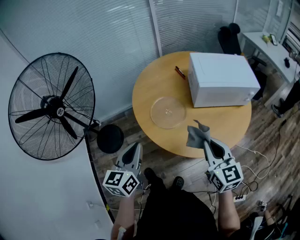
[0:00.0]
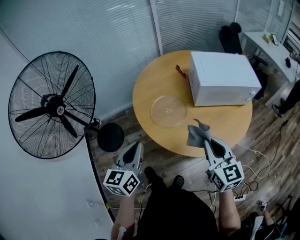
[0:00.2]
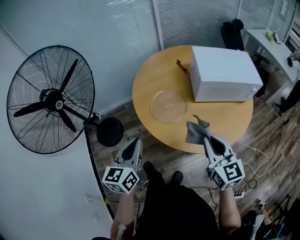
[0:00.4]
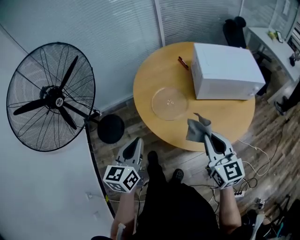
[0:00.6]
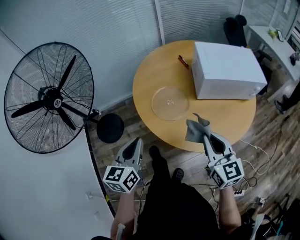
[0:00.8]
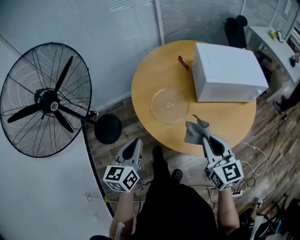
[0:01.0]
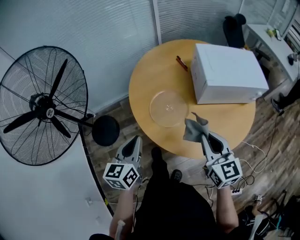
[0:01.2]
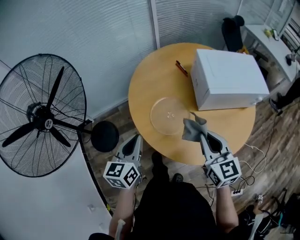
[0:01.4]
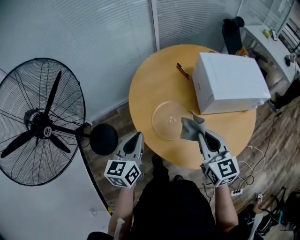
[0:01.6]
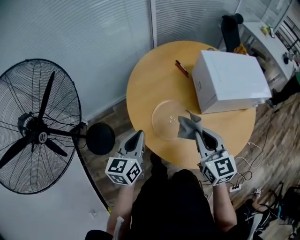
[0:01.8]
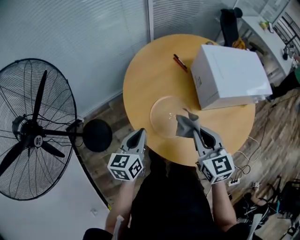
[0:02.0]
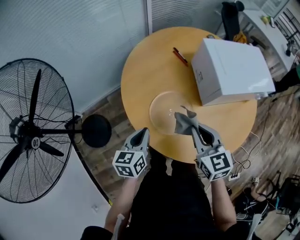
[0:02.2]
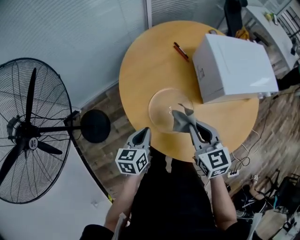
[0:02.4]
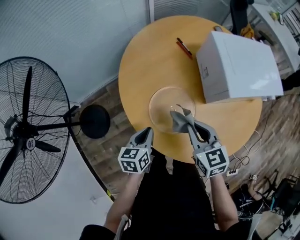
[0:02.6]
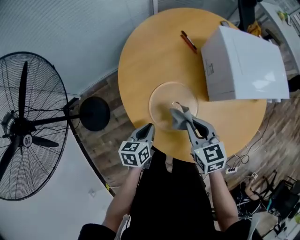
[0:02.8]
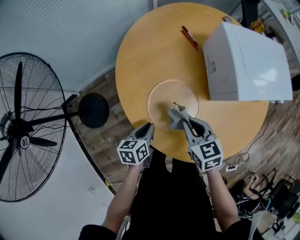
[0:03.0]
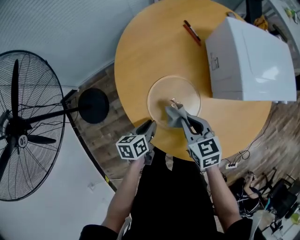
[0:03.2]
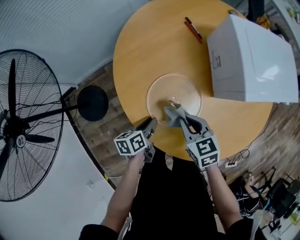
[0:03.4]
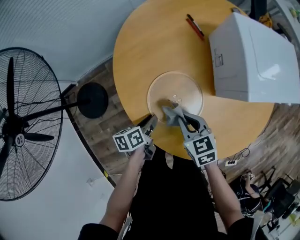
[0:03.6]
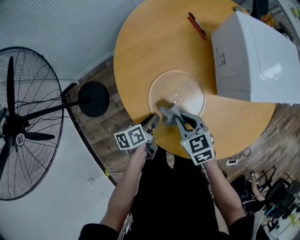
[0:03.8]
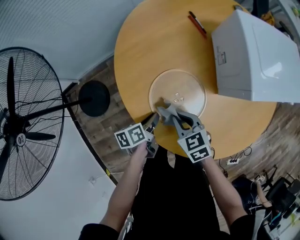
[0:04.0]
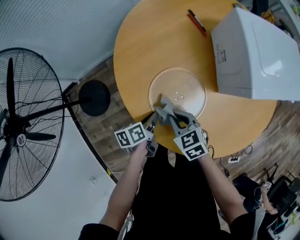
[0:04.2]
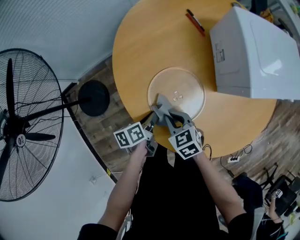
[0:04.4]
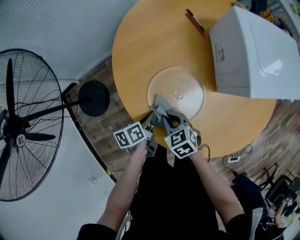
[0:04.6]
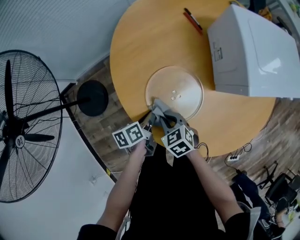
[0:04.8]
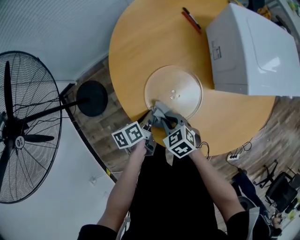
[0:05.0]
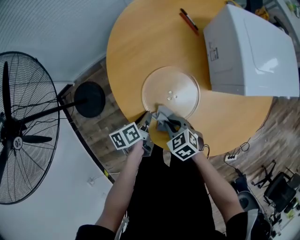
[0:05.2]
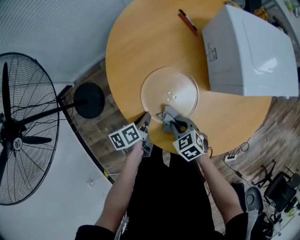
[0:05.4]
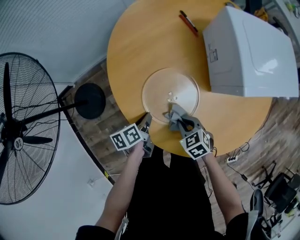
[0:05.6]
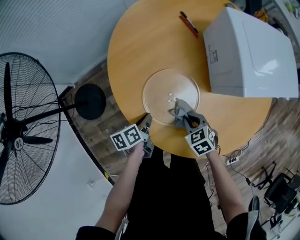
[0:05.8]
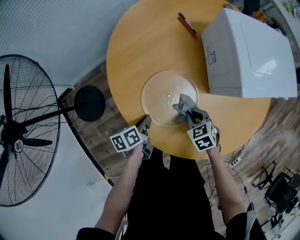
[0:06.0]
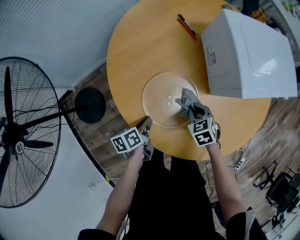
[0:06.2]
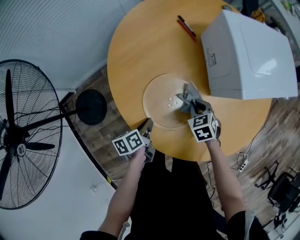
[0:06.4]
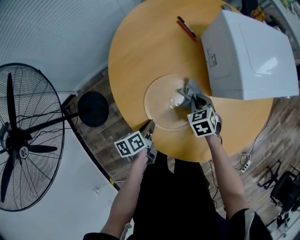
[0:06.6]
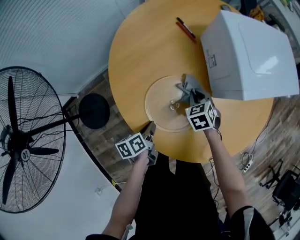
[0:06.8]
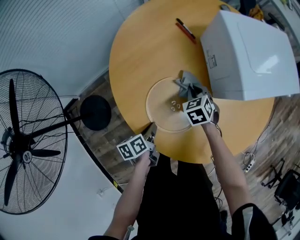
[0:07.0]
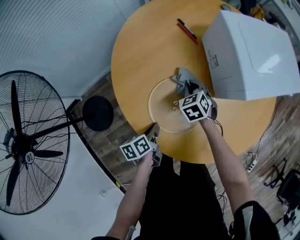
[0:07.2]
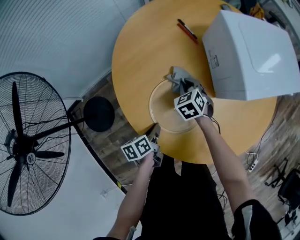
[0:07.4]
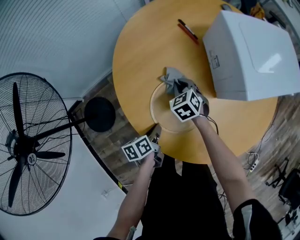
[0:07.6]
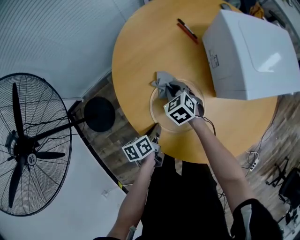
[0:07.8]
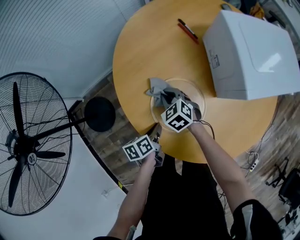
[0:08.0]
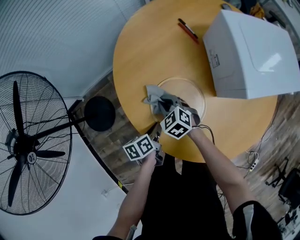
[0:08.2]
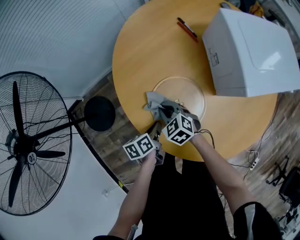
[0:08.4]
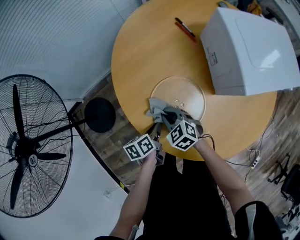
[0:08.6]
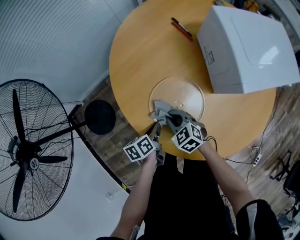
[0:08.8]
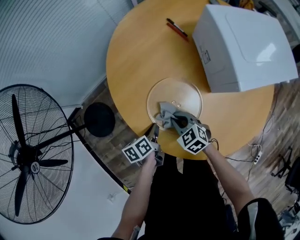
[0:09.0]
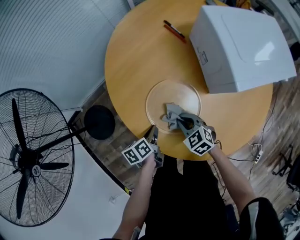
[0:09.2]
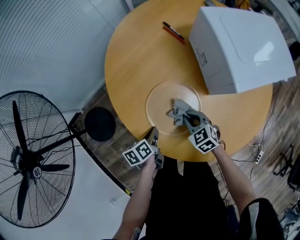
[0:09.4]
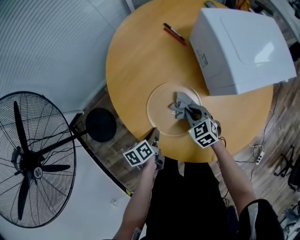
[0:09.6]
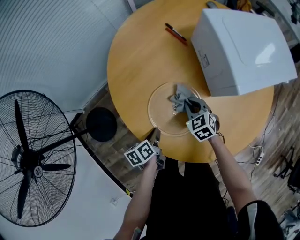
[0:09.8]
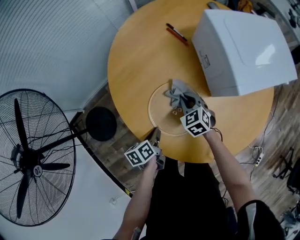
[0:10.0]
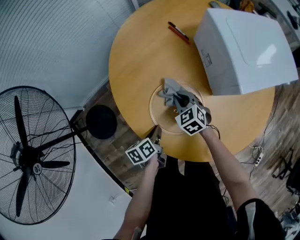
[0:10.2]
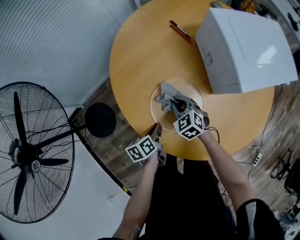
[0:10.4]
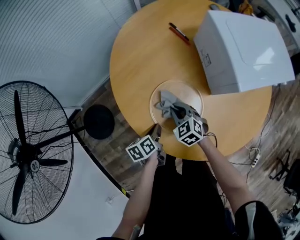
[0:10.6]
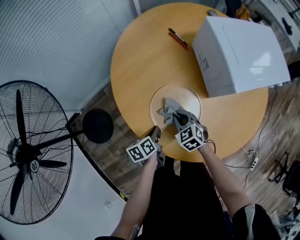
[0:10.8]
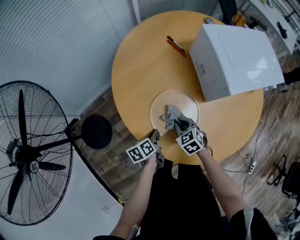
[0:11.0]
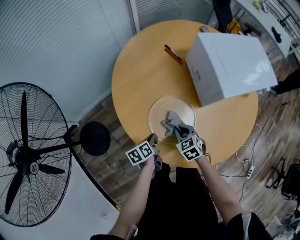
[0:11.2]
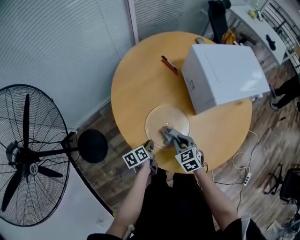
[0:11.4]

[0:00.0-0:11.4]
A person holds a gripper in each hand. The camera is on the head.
0.0 to 1.4 s: Both grippers move forward, approximately 10 cm.
1.4 to 2.8 s: The left gripper is displaced downward by approximately 20 cm, and turns by about 30 degrees; the right gripper heads downward, forward and to the left, covering approximately 20 cm, and changes its angle by some 20 degrees.
2.8 to 4.2 s: The left gripper shifts some 10 cm downward, and swivels some 30 degrees, while the right gripper heads downward and to the left, covering roughly 15 cm.
4.2 to 5.6 s: The right gripper moves to the right, approximately 5 cm.
5.6 to 7.2 s: The right gripper shifts about 20 cm forward, and changes its angle by approximately 20 degrees.
7.2 to 8.6 s: The right gripper goes about 20 cm backward and to the left, and turns by approximately 30 degrees.
8.6 to 10.0 s: The right gripper shifts some 15 cm to the right and forward, and changes its angle by roughly 20 degrees.
10.0 to 11.4 s: The right gripper heads backward, covering some 10 cm.

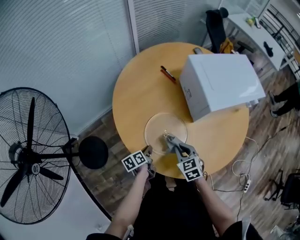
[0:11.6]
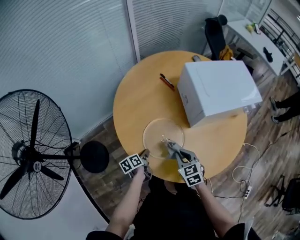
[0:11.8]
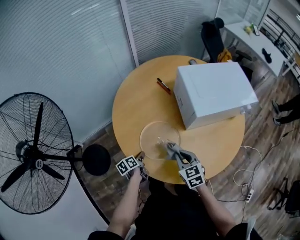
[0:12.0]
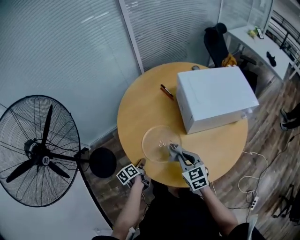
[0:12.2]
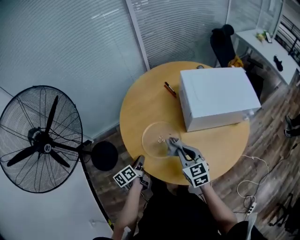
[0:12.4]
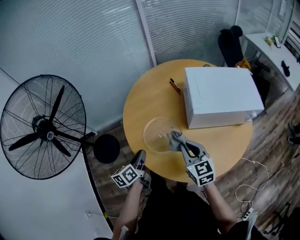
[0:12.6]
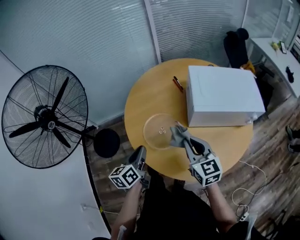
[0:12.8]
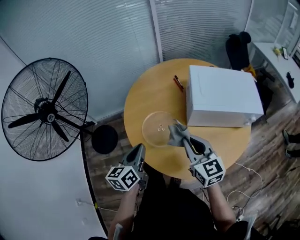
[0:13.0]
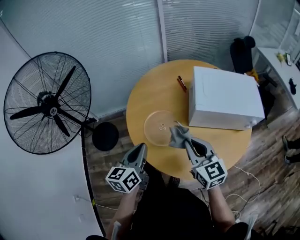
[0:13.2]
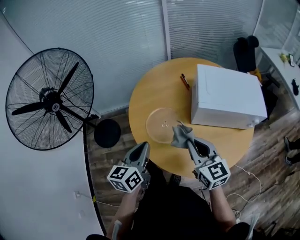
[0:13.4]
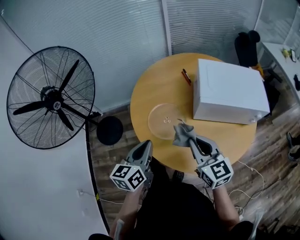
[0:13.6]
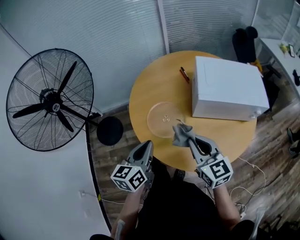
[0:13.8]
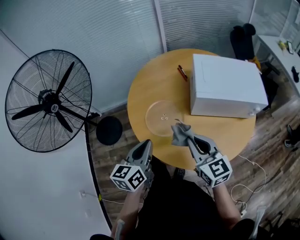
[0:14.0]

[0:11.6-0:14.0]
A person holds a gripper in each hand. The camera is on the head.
11.6 to 12.8 s: The right gripper heads upward and to the right, covering about 25 cm, and rotates approximately 30 degrees, while the left gripper is displaced upward by some 25 cm, and changes its angle by roughly 40 degrees.
12.8 to 14.0 s: The right gripper heads backward, covering approximately 5 cm; the left gripper moves backward and upward, roughly 10 cm.

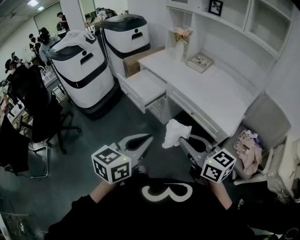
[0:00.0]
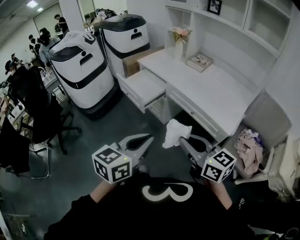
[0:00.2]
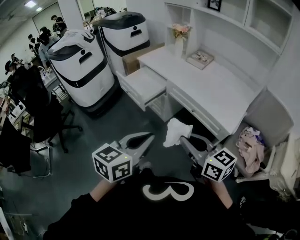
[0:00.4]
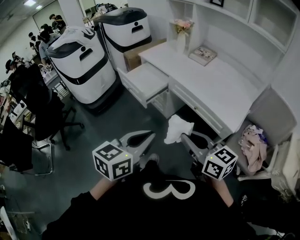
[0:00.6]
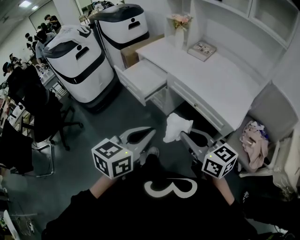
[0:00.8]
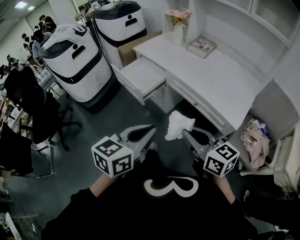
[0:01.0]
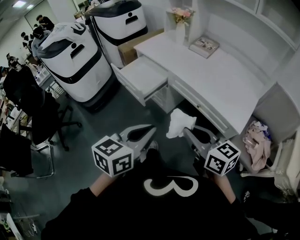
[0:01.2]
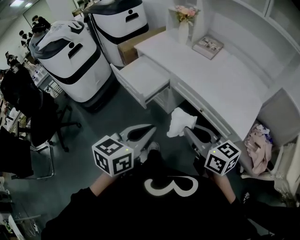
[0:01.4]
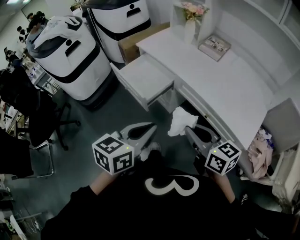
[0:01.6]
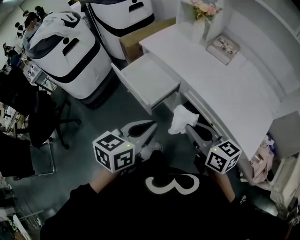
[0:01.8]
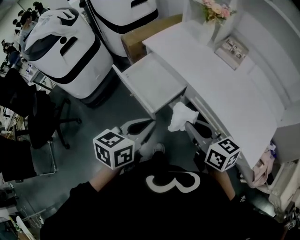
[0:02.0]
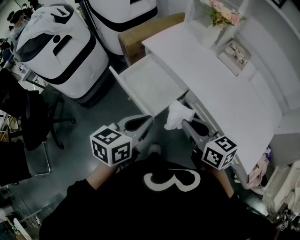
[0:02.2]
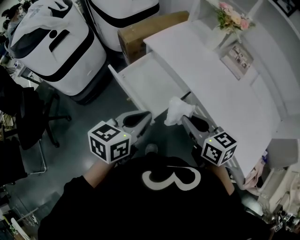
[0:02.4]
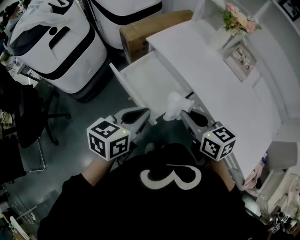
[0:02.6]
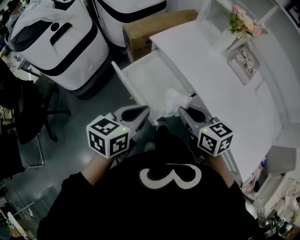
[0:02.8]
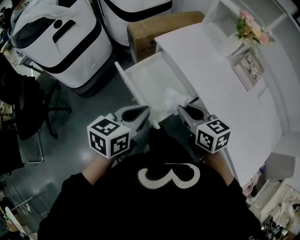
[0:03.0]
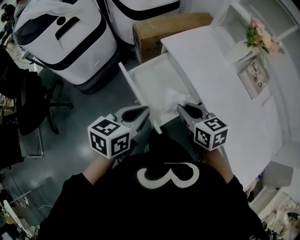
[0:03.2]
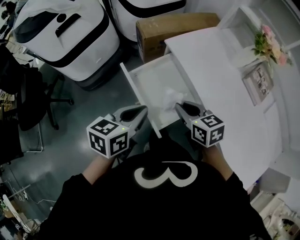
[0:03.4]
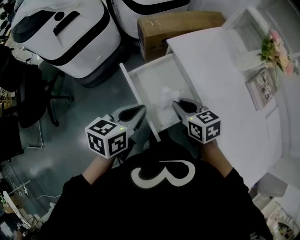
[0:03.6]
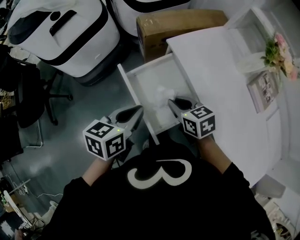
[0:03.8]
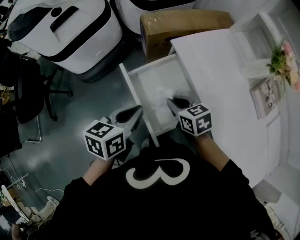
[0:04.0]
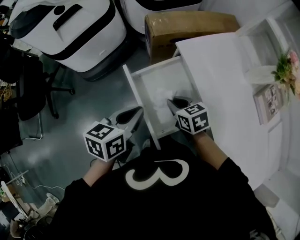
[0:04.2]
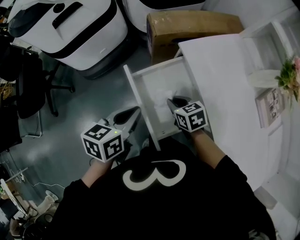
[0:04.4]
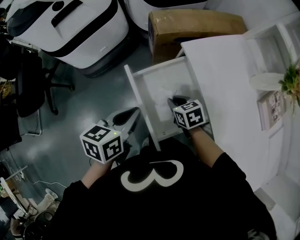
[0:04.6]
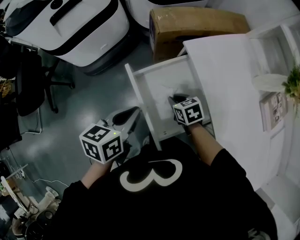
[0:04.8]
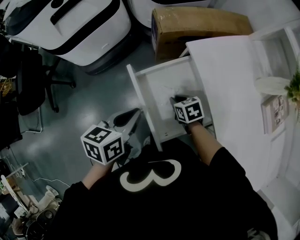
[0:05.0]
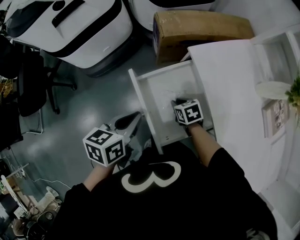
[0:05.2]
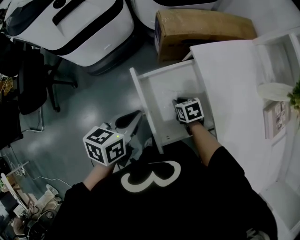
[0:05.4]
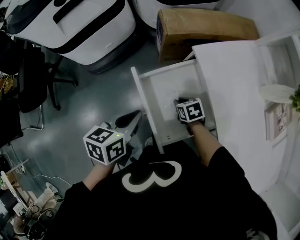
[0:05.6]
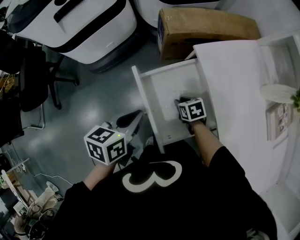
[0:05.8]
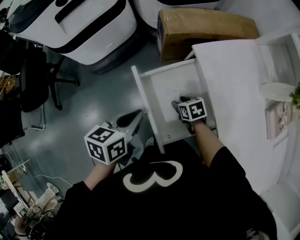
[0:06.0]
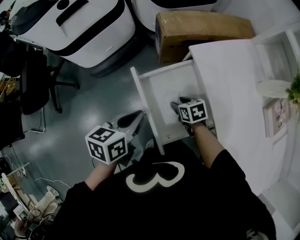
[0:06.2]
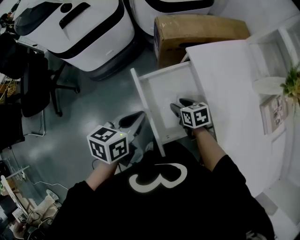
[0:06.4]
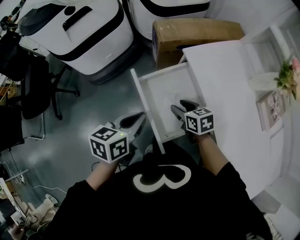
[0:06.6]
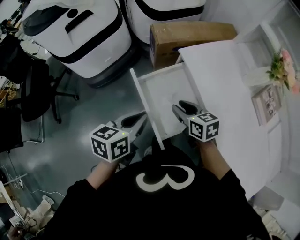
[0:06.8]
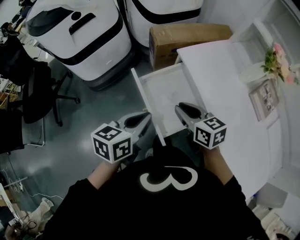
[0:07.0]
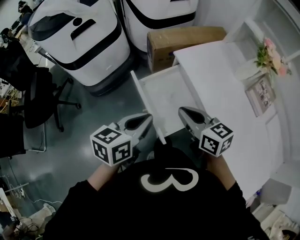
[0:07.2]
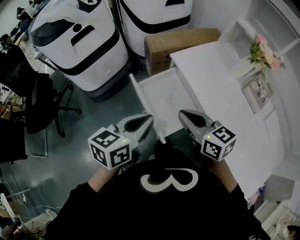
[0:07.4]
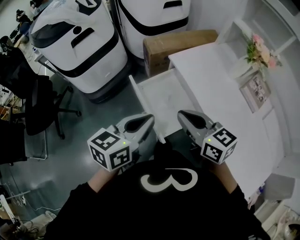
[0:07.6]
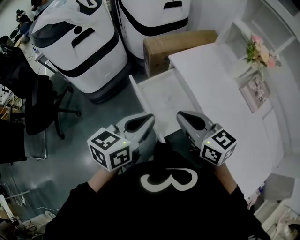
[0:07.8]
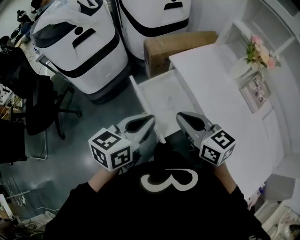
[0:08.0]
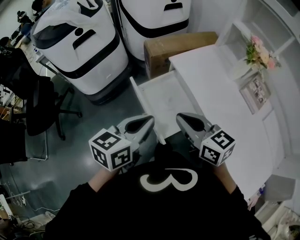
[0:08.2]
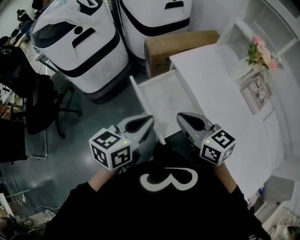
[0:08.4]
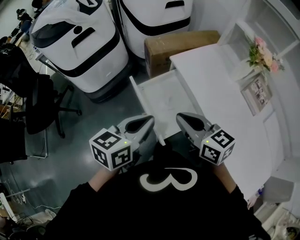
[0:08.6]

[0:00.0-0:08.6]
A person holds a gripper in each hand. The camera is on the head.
0.0 to 1.4 s: Both grippers travel together forward and downward, some 15 cm.
1.4 to 2.8 s: The two grippers go roughly 40 cm forward and to the left.
2.8 to 4.4 s: The right gripper travels downward and forward by roughly 25 cm, and changes its angle by about 30 degrees. Meanwhile the left gripper is displaced forward, downward and to the left by about 15 cm, and changes its angle by some 30 degrees.
4.4 to 5.8 s: The right gripper shifts some 10 cm downward.
5.8 to 7.2 s: The left gripper goes about 15 cm upward and backward. Meanwhile the right gripper heads upward, covering some 30 cm, points its fingers some 40 degrees further upward, and closes its fingers.
7.2 to 8.6 s: The right gripper changes place by about 5 cm.

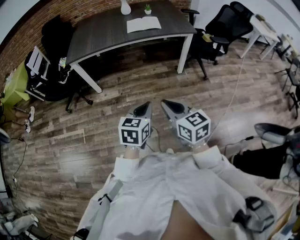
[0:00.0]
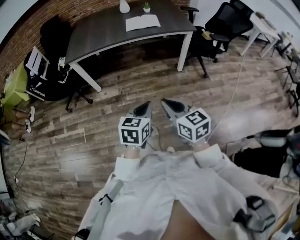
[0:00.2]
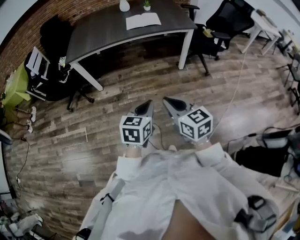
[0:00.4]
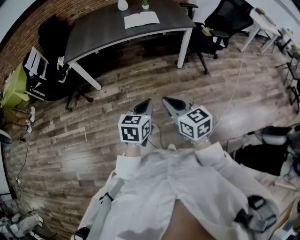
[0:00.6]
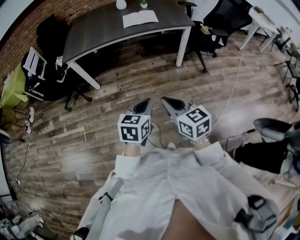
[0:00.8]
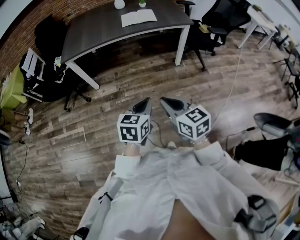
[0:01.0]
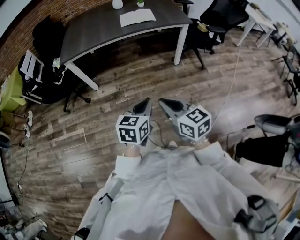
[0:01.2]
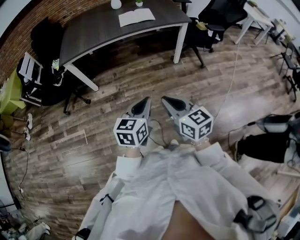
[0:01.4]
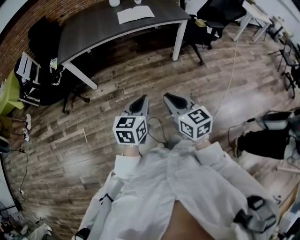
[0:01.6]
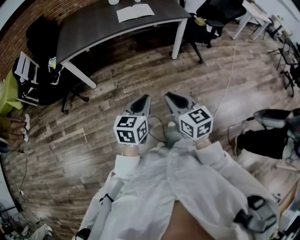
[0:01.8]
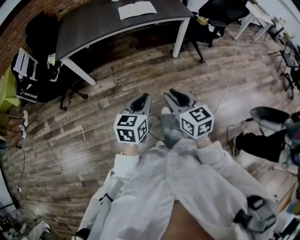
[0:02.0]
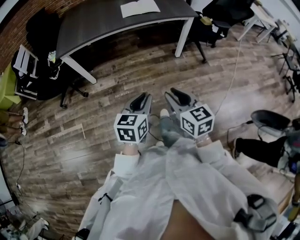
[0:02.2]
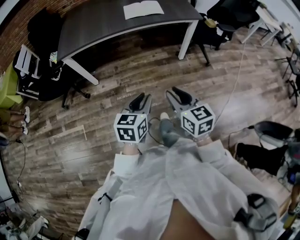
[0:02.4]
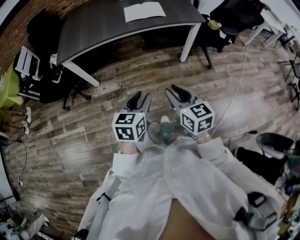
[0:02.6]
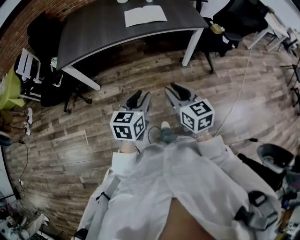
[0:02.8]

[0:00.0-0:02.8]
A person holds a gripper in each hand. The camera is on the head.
0.0 to 1.4 s: The grippers move only a little.
1.4 to 2.8 s: The two grippers go some 20 cm forward. The left gripper opens.
